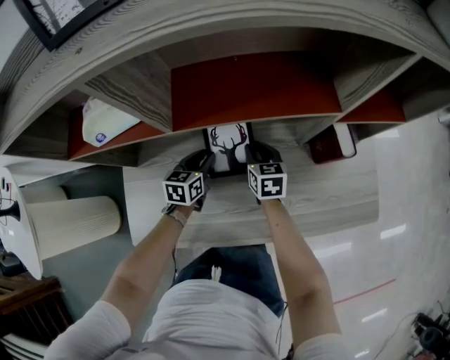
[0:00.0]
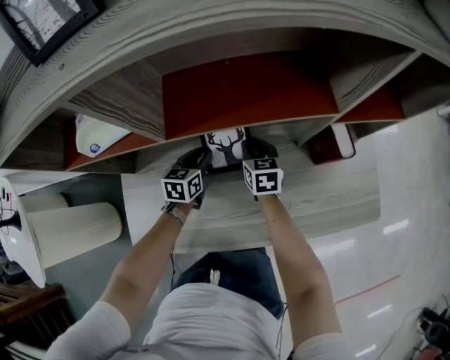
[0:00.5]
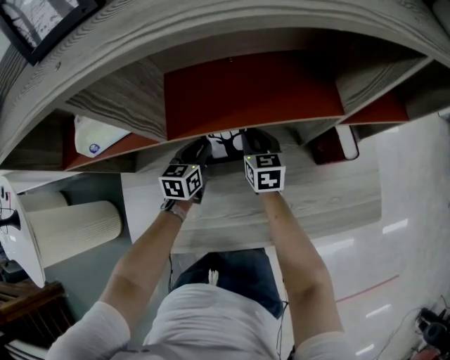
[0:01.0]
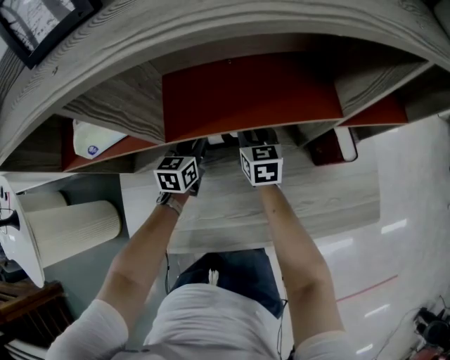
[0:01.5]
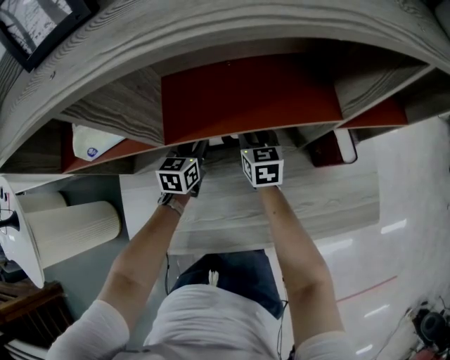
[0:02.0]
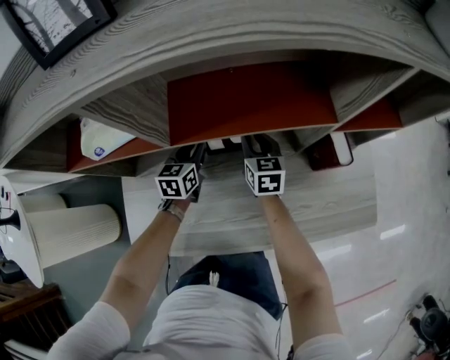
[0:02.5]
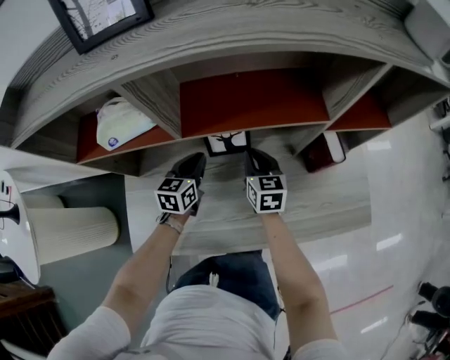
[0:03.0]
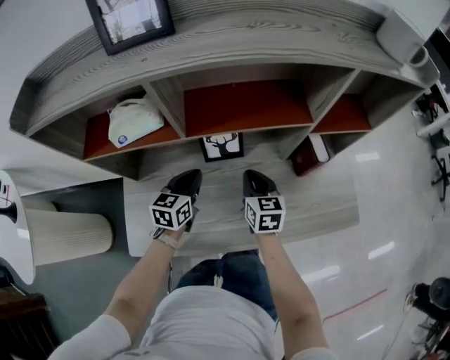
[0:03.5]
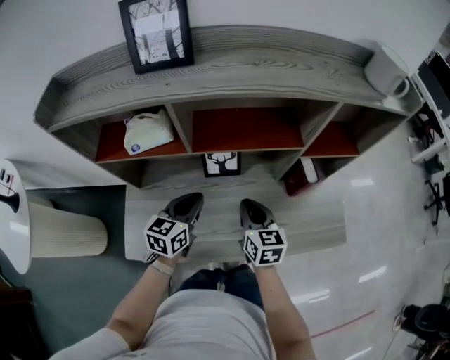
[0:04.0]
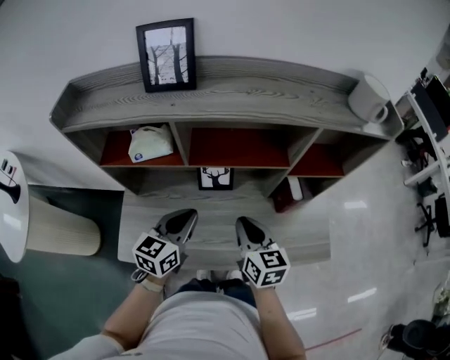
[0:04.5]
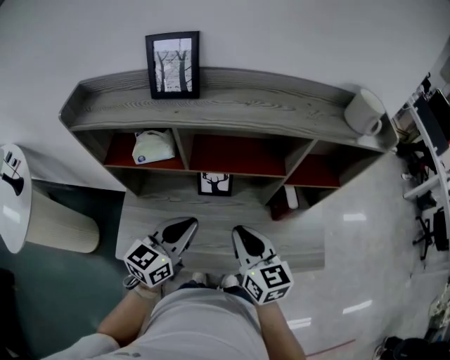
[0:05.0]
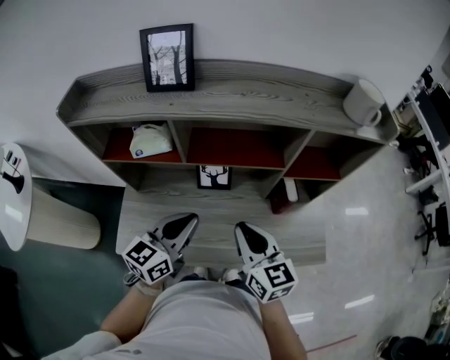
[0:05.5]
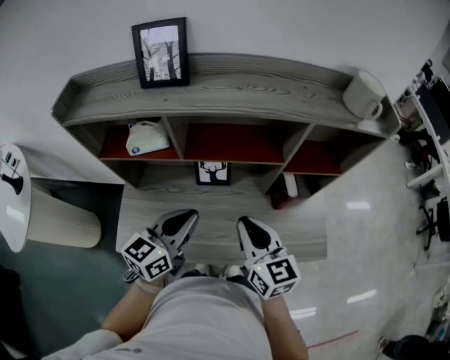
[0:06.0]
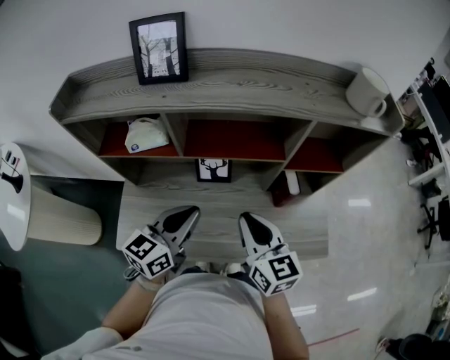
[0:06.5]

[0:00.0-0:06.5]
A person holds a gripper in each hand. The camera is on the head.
0:00.0 to 0:02.0: Both grippers move forward, roughly 5 cm.
0:02.0 to 0:04.5: The right gripper heads backward and upward, covering some 30 cm, while the left gripper moves upward and backward, about 35 cm, and closes up.
0:04.5 to 0:06.5: Both grippers move upward, about 5 cm.

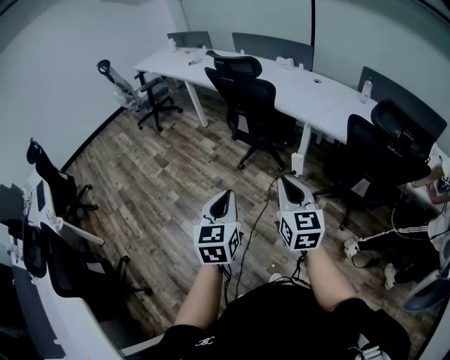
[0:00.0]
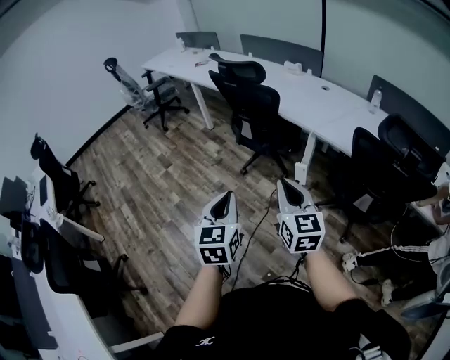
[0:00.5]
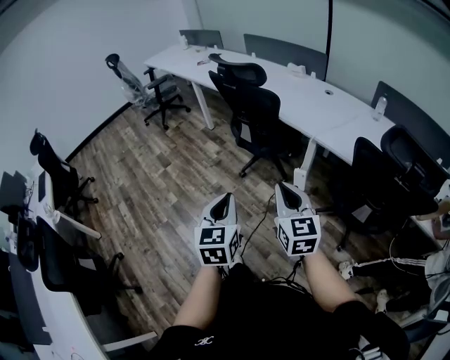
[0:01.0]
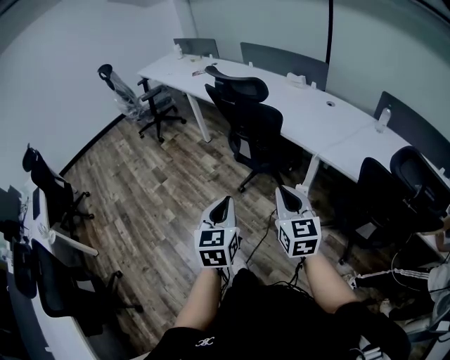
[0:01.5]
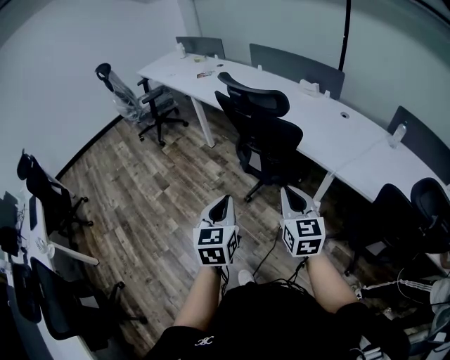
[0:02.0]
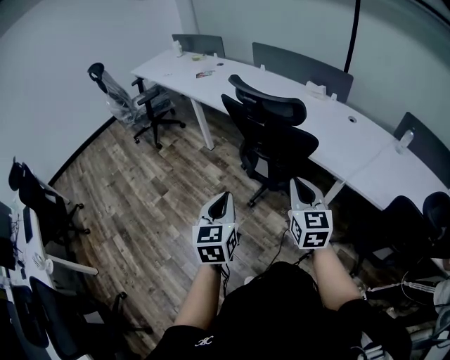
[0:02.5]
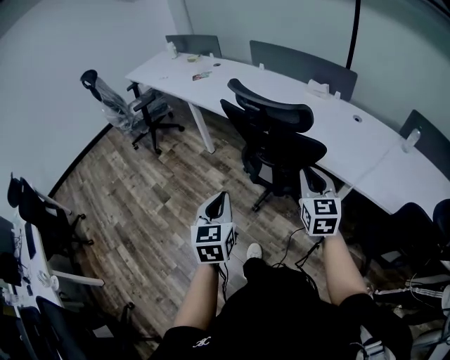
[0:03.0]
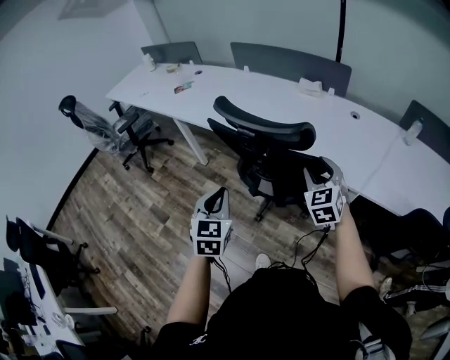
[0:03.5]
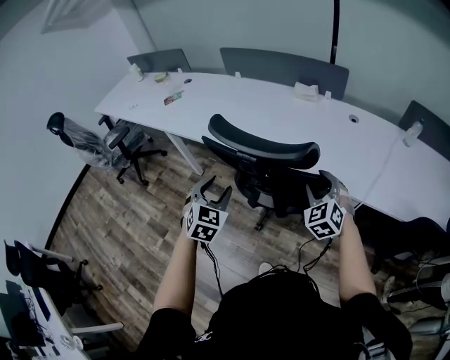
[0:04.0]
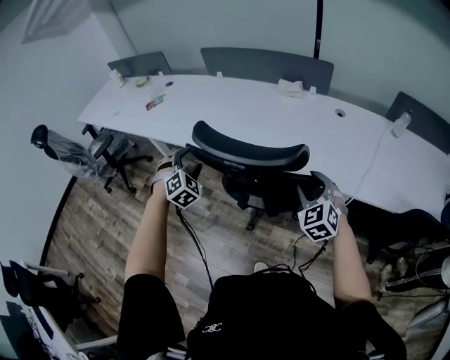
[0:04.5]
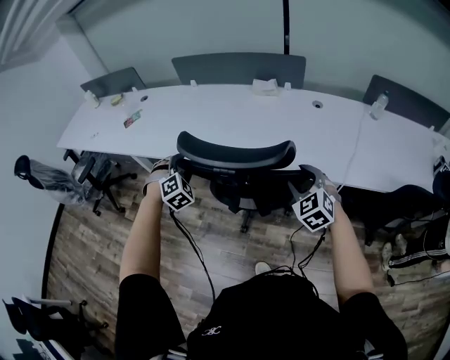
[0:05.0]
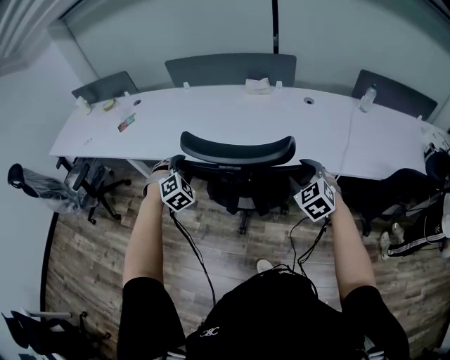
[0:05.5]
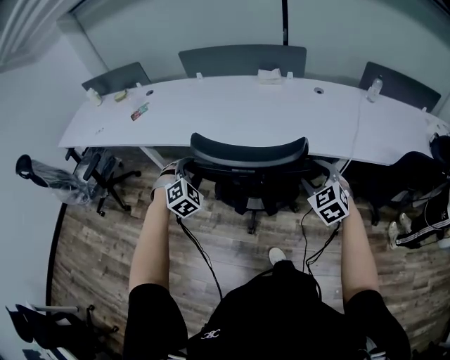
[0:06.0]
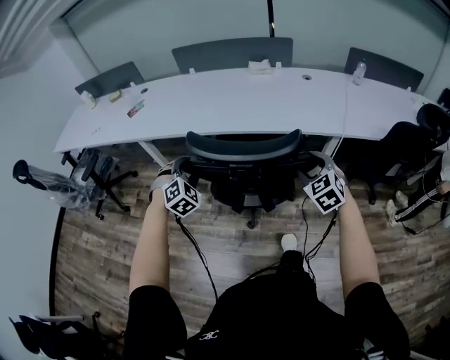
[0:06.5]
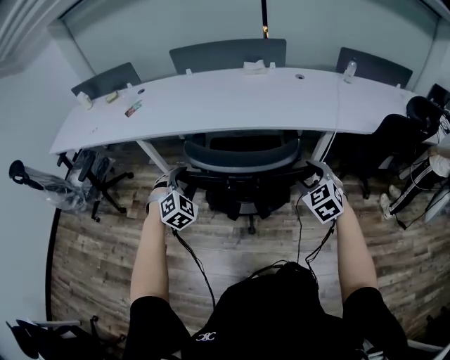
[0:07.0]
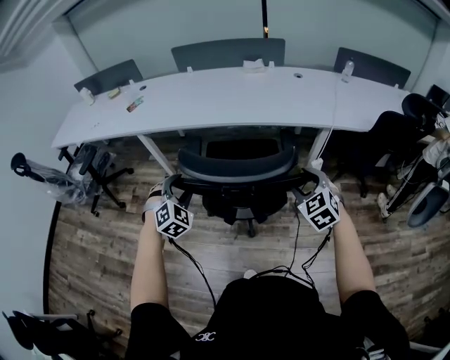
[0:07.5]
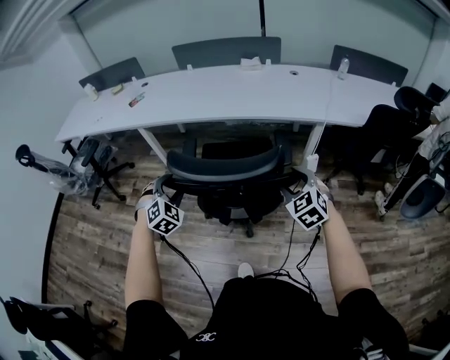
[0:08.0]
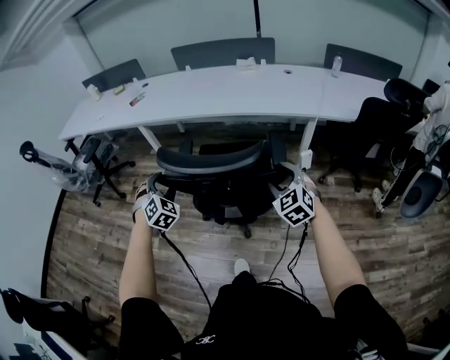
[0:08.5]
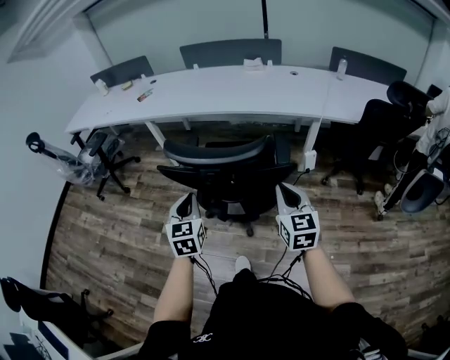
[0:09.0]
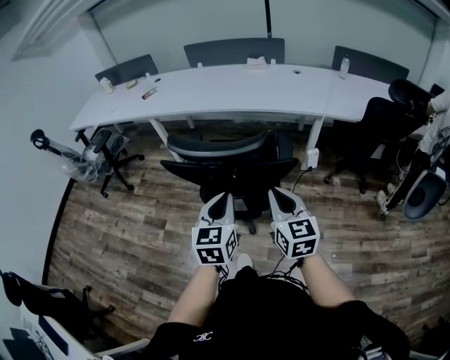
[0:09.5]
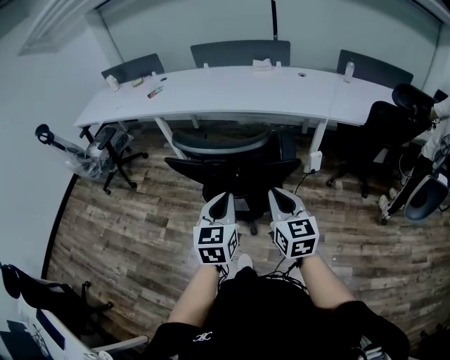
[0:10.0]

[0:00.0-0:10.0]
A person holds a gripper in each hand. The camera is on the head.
0:00.0 to 0:02.0: Both grippers travel together forward, roughly 35 cm.
0:02.0 to 0:04.0: Both grippers move forward, roughly 40 cm. The left gripper rotates some 40 degrees, and opens. The right gripper changes its angle by roughly 50 degrees, and opens.
0:04.0 to 0:06.0: The left gripper shifts some 10 cm to the left, travels forward and back again, roughly 15 cm each way, and changes its angle by approximately 40 degrees, while the right gripper is displaced backward and to the left by about 10 cm.
0:06.0 to 0:08.0: Both grippers travel together backward, about 30 cm.
0:08.0 to 0:10.0: The right gripper travels backward by some 15 cm, rotates about 40 degrees, and closes up. Meanwhile the left gripper shifts approximately 30 cm backward and to the right, rolls counterclockwise, seen from behind, by some 60 degrees, and closes its fingers.

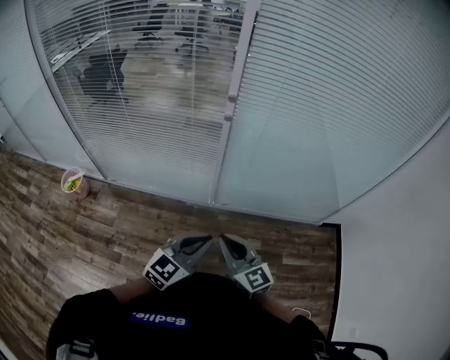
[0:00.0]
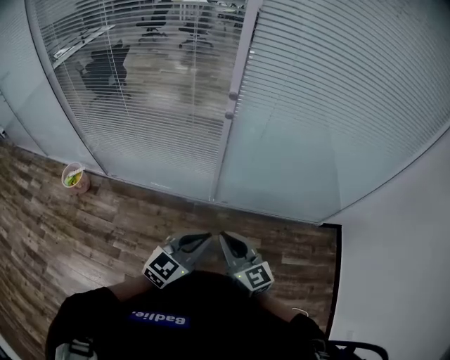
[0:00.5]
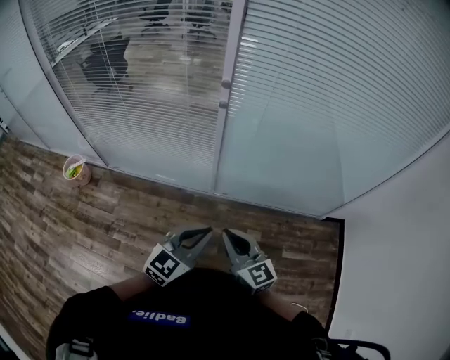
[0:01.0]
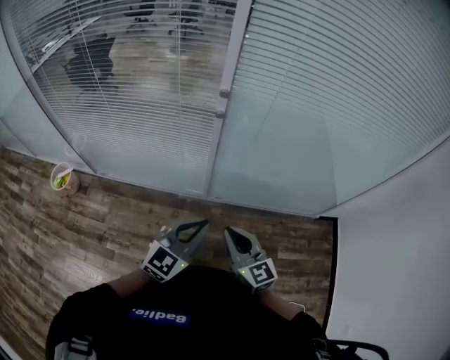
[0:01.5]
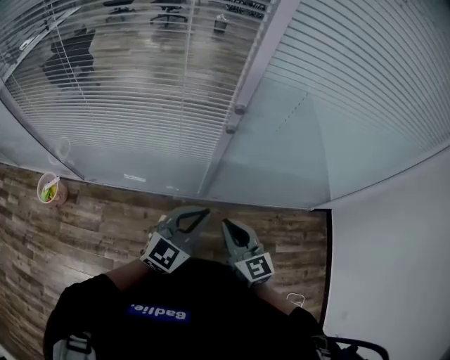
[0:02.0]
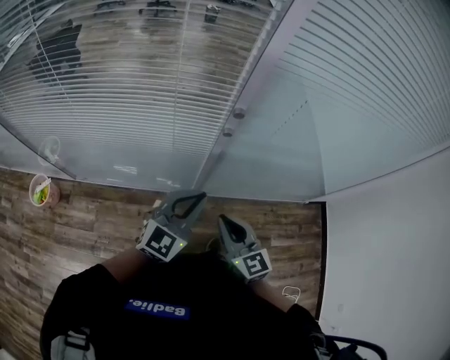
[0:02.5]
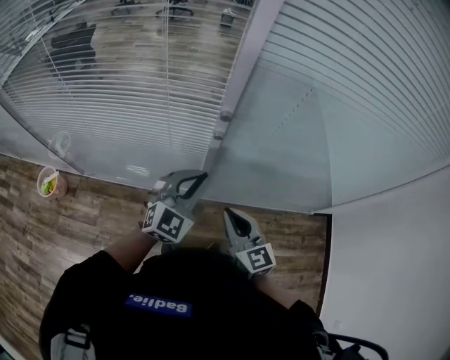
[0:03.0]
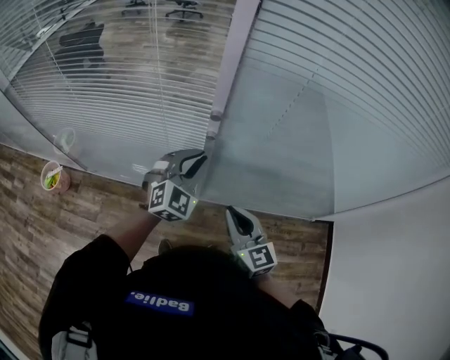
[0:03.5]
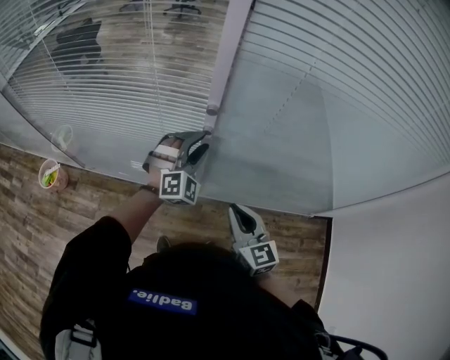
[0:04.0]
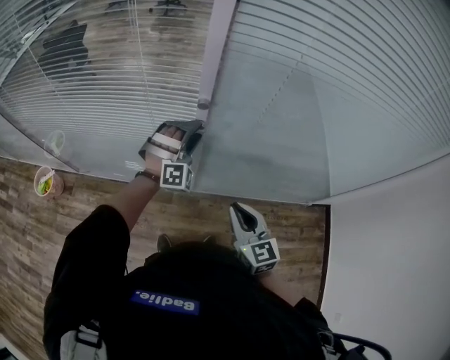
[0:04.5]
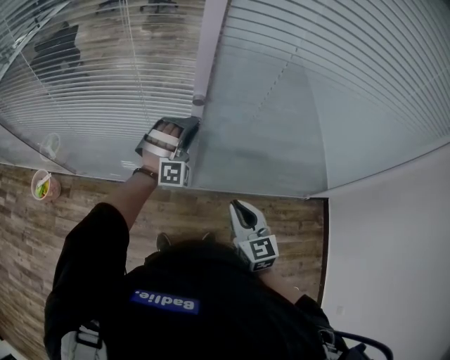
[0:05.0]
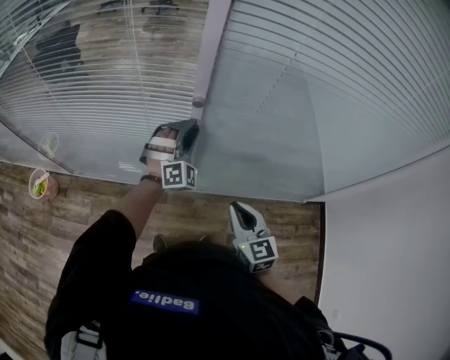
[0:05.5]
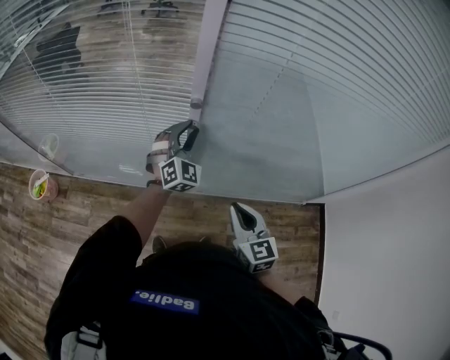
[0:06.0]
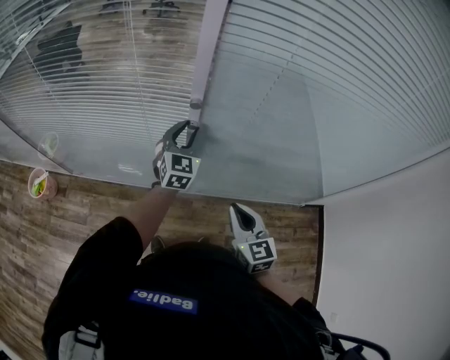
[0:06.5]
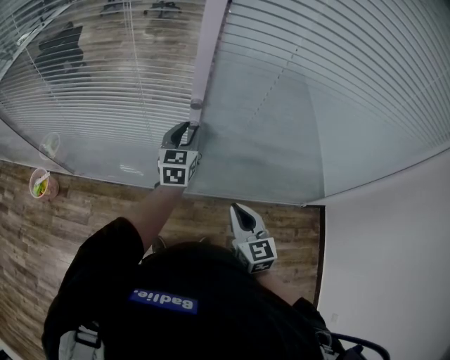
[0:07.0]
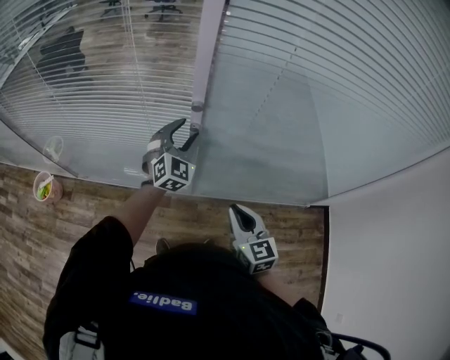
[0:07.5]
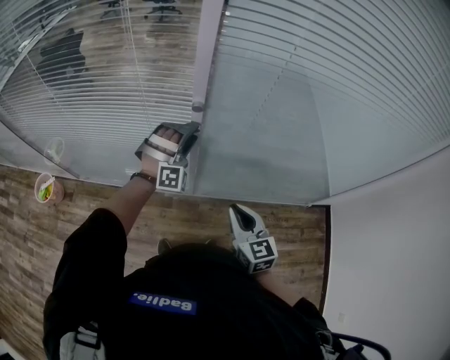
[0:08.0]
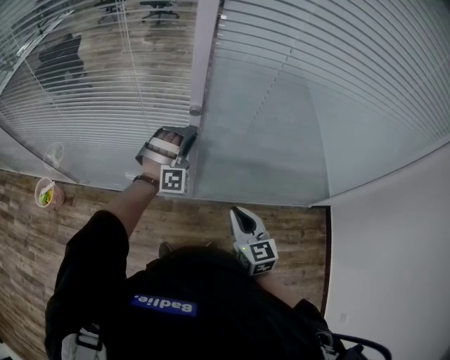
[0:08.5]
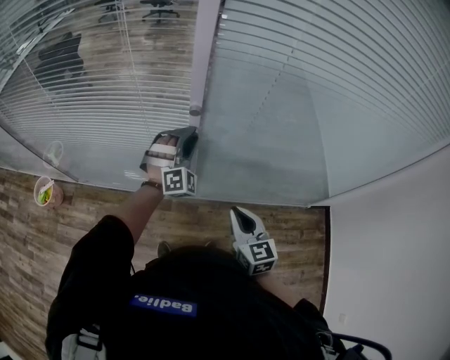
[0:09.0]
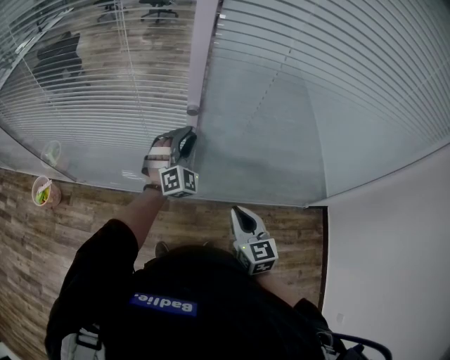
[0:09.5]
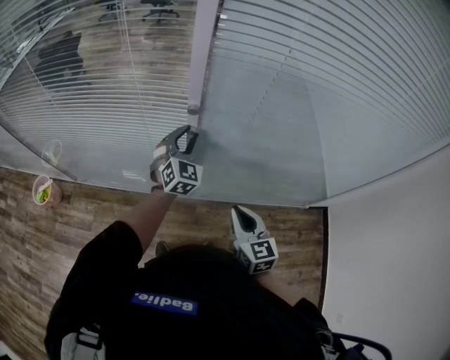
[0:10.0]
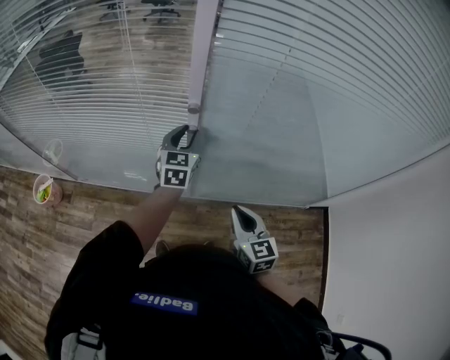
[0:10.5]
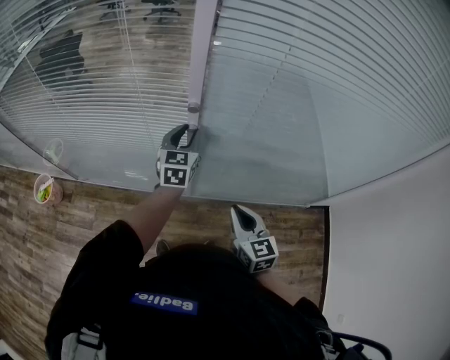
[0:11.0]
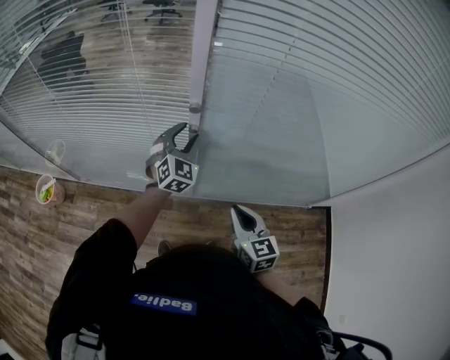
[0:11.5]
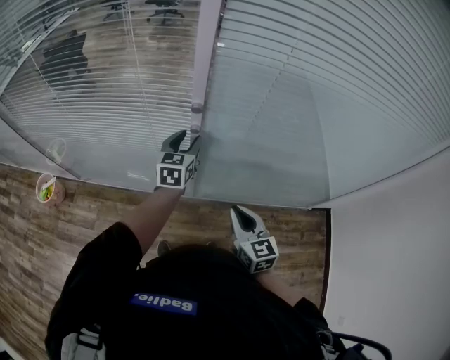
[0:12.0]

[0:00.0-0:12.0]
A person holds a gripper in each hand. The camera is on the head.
0:00.0 to 0:02.0: The two grippers go about 15 cm forward.
0:02.0 to 0:04.0: The left gripper is displaced forward by some 25 cm, rolls clockwise, seen from behind, by approximately 50 degrees, and opens its fingers. Meanwhile the right gripper moves to the right and forward, approximately 10 cm.
0:04.0 to 0:06.0: The left gripper rotates some 20 degrees.
0:06.0 to 0:08.0: The left gripper twists approximately 40 degrees clockwise, seen from behind.
0:08.0 to 0:10.0: The left gripper rotates around the line of its fingers by approximately 60 degrees, counterclockwise from behind.
0:10.0 to 0:12.0: The left gripper turns by roughly 40 degrees.
